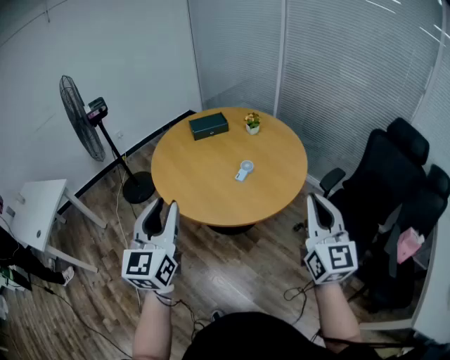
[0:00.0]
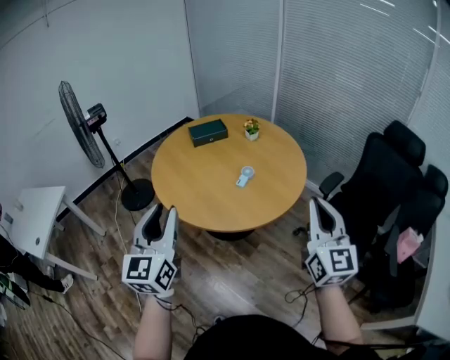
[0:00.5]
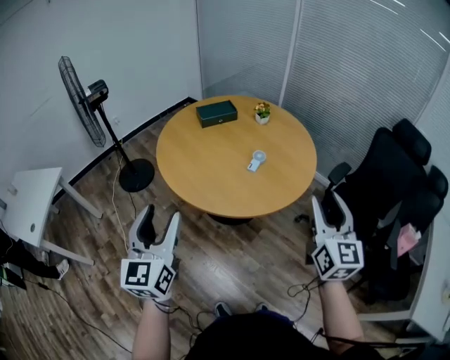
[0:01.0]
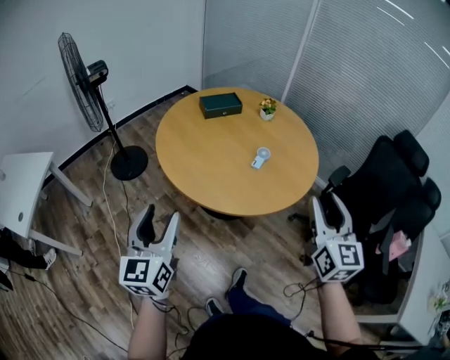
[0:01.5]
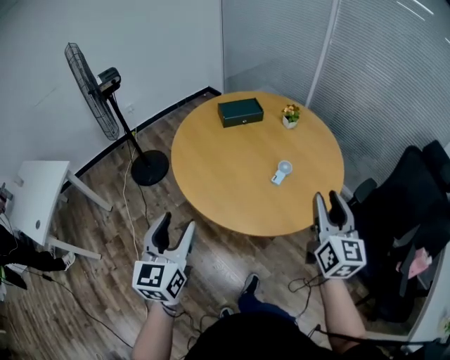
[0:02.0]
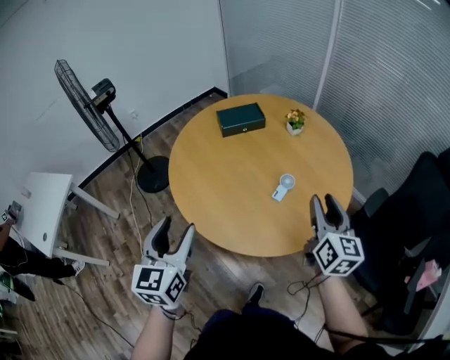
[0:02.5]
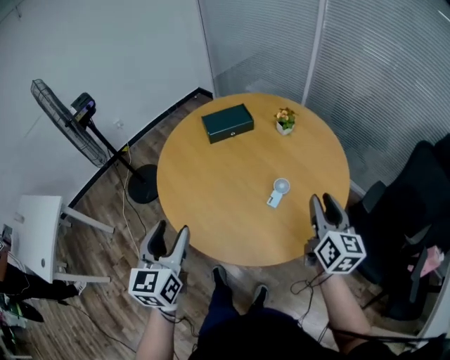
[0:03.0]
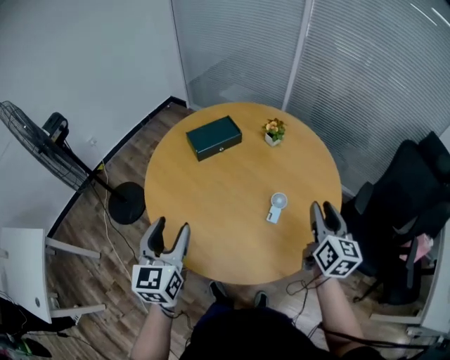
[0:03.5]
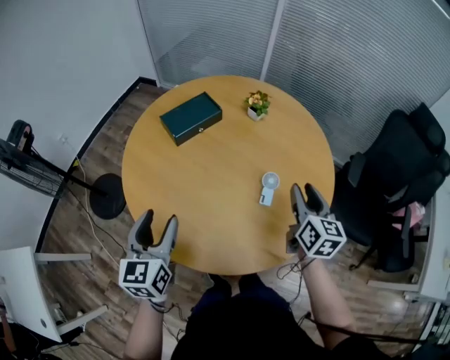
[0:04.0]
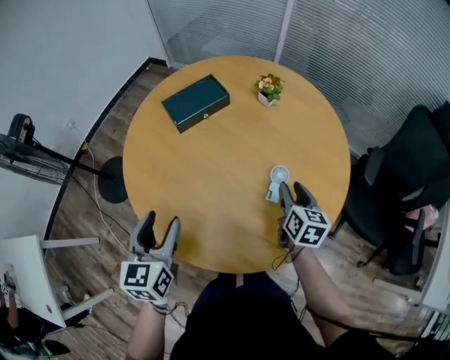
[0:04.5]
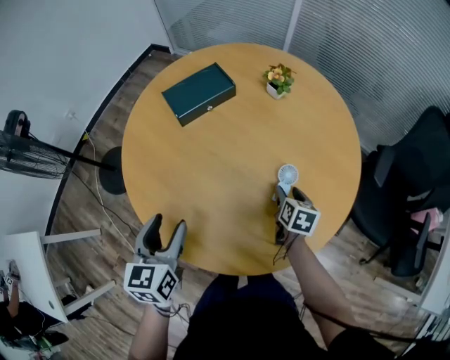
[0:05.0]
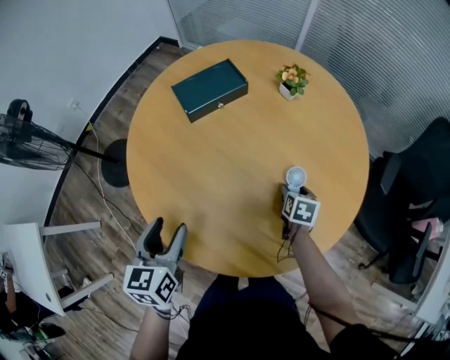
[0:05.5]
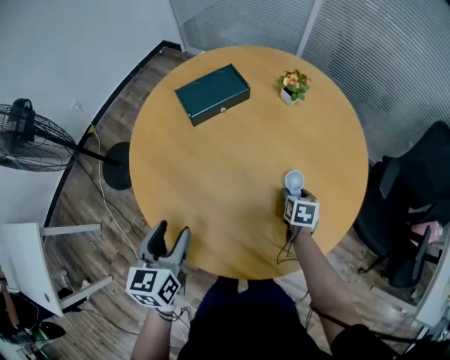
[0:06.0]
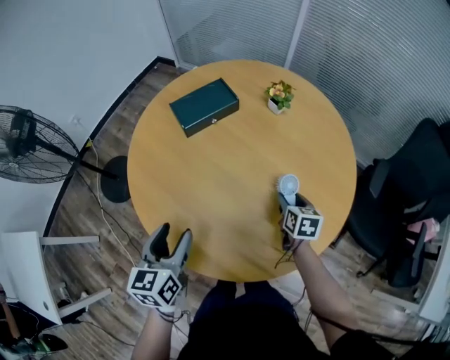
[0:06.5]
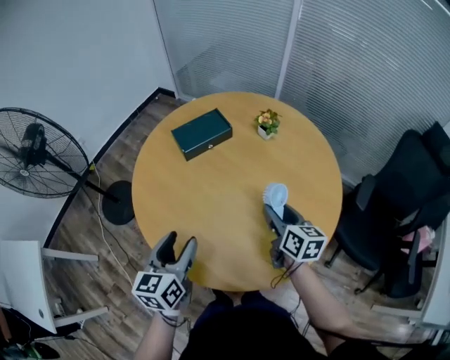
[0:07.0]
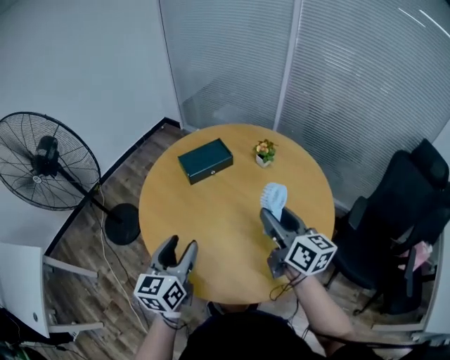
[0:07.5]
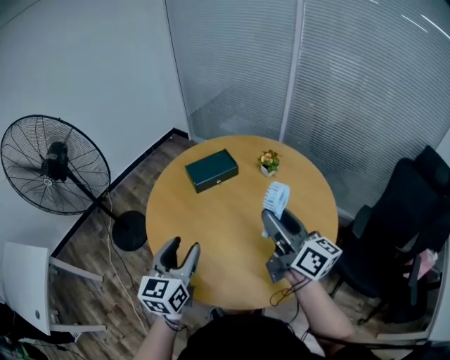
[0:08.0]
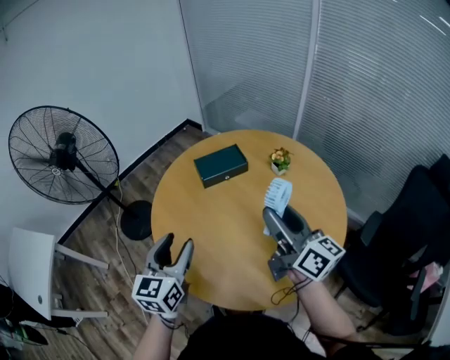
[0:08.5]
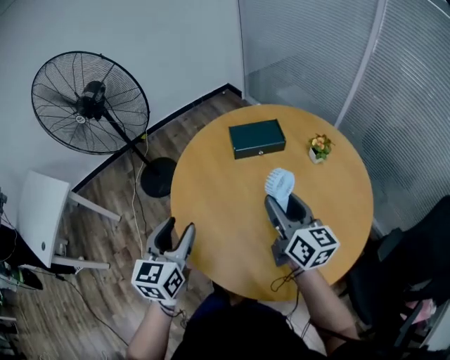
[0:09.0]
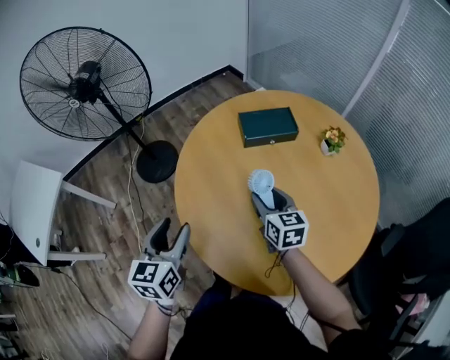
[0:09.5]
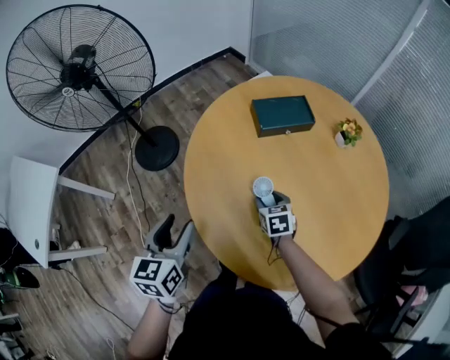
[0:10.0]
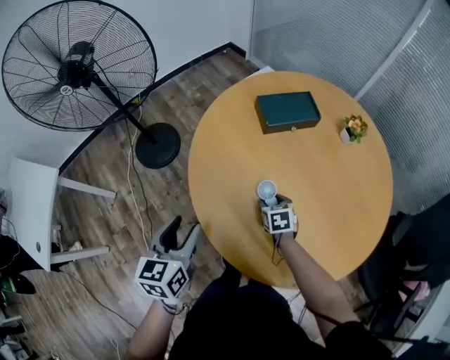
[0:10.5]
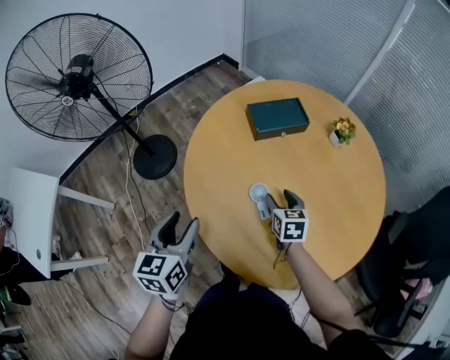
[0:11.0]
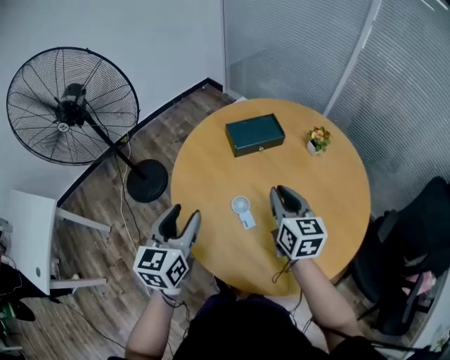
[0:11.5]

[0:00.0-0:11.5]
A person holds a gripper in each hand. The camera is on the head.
0:00.0 to 0:02.0: The right gripper travels forward, to the left and downward by roughly 25 cm, and opens. Meanwhile the left gripper moves to the left, downward and forward, approximately 20 cm, and opens up.
0:02.0 to 0:04.0: The right gripper is displaced forward and downward by some 30 cm, and swivels approximately 30 degrees; the left gripper travels forward by roughly 35 cm.
0:04.0 to 0:06.0: The left gripper is displaced downward by roughly 10 cm, while the right gripper travels downward by about 30 cm, and angles its fingers downward, by about 40 degrees.
0:06.0 to 0:07.5: The left gripper travels upward and to the right by some 15 cm, while the right gripper moves upward, some 35 cm, and angles its fingers upward, by approximately 50 degrees.
0:07.5 to 0:09.5: The left gripper is displaced to the left by roughly 15 cm, and changes its angle by about 20 degrees. The right gripper goes some 25 cm to the left, downward and forward, and changes its angle by about 30 degrees.
0:09.5 to 0:11.5: The left gripper heads forward, covering approximately 5 cm, while the right gripper reaches about 20 cm downward, then returns, and closes up.

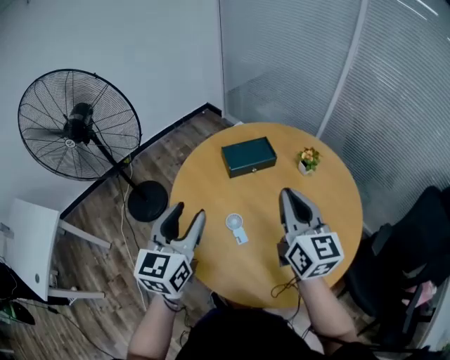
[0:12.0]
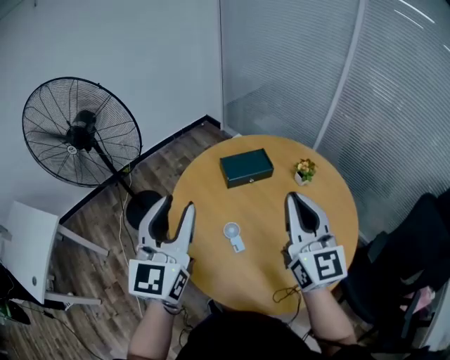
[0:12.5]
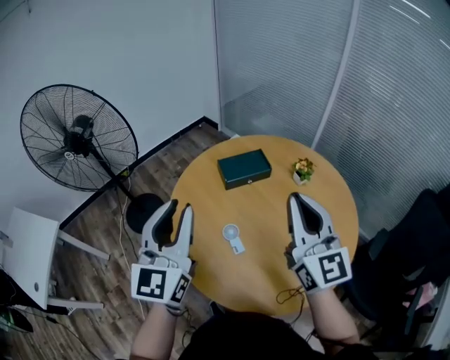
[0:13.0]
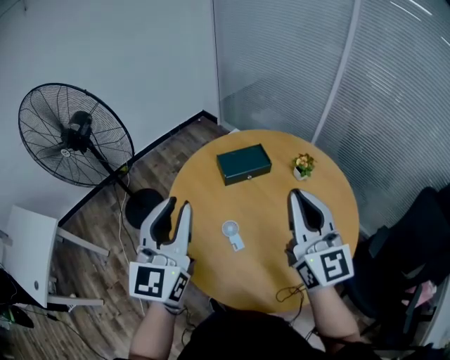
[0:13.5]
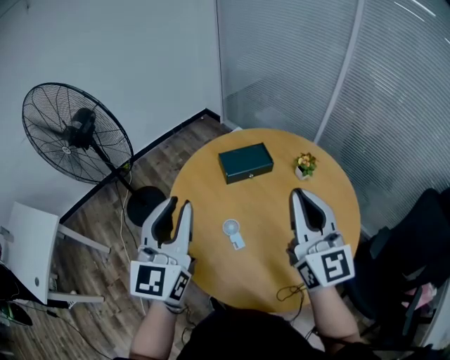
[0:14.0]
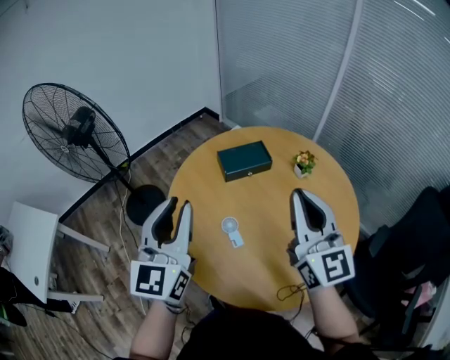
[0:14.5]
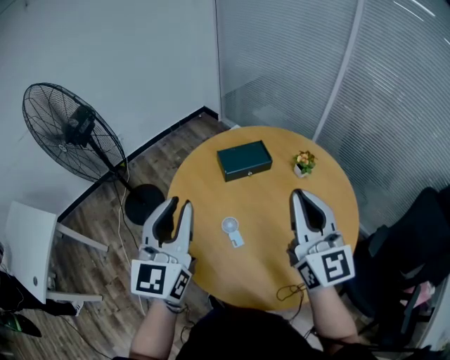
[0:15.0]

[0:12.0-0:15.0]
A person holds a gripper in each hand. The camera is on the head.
0:12.0 to 0:13.5: The two grippers go some 10 cm upward. The left gripper closes up.
0:13.5 to 0:15.0: The grippers stay close to where they were, moving slightly.

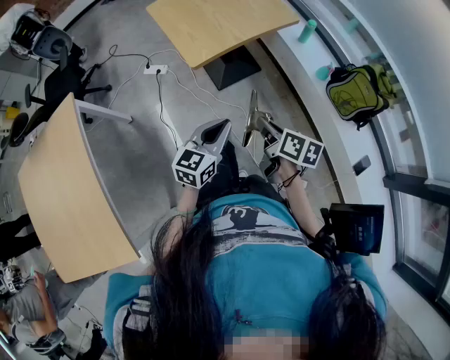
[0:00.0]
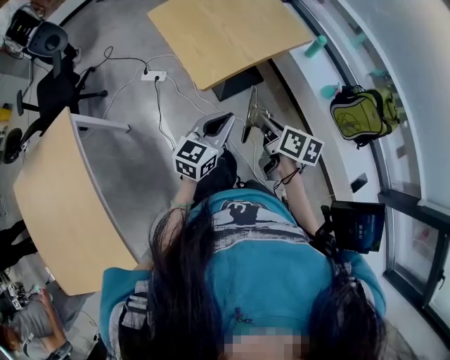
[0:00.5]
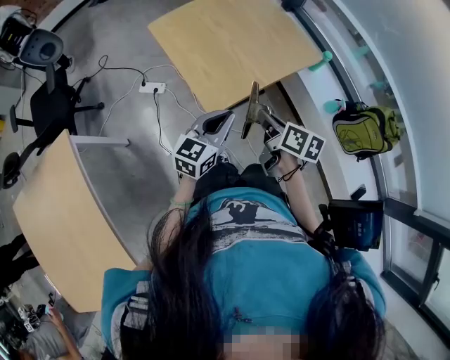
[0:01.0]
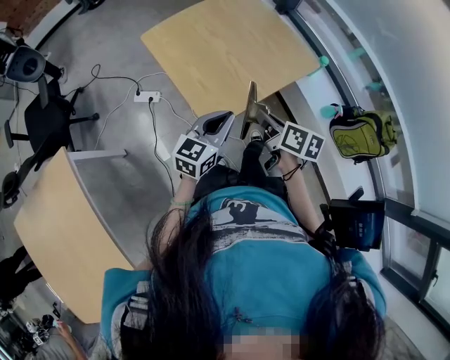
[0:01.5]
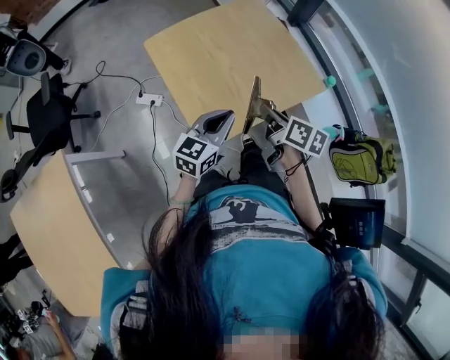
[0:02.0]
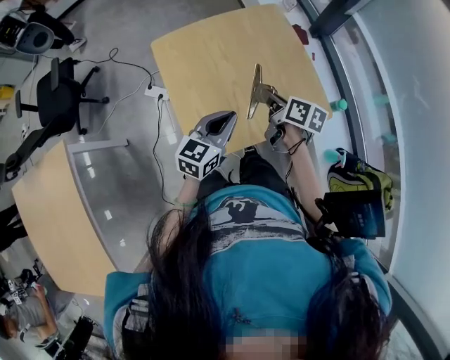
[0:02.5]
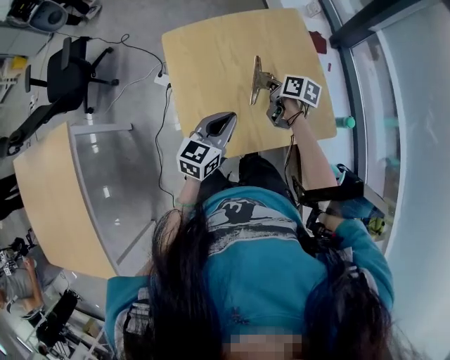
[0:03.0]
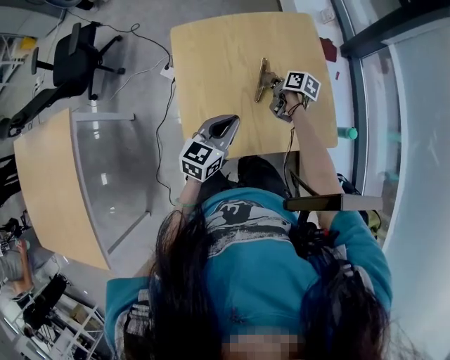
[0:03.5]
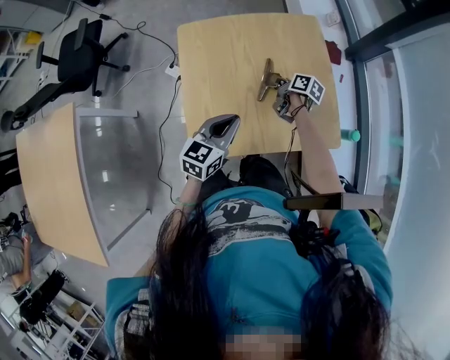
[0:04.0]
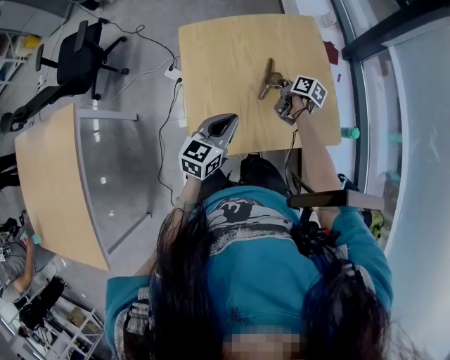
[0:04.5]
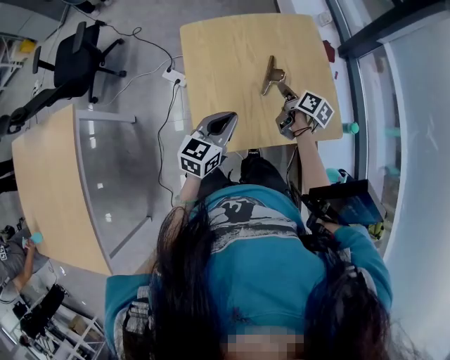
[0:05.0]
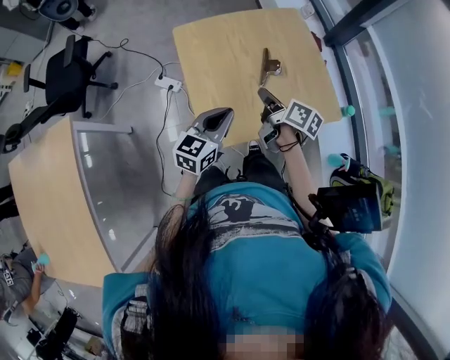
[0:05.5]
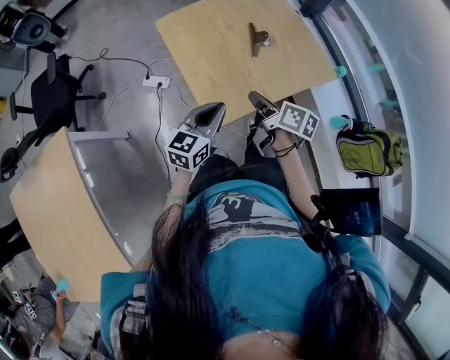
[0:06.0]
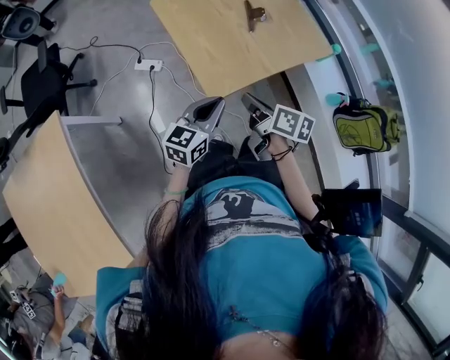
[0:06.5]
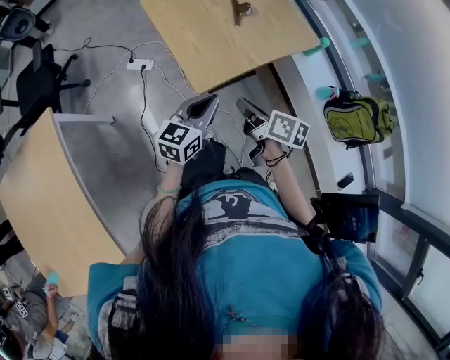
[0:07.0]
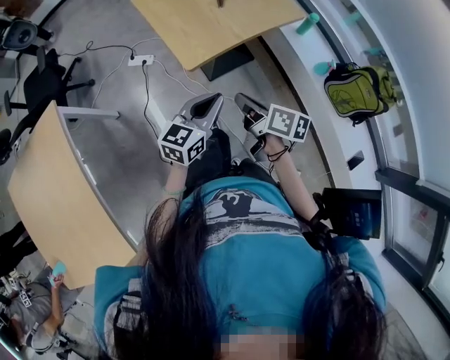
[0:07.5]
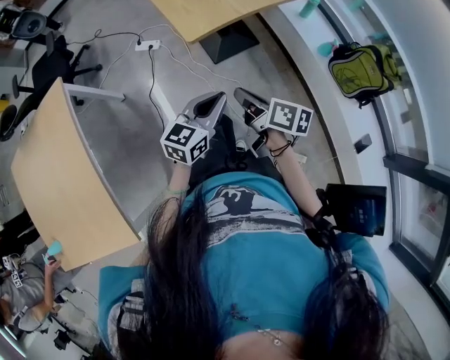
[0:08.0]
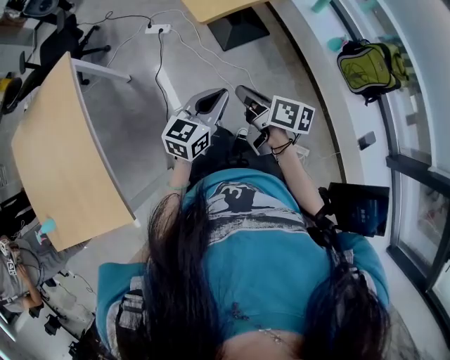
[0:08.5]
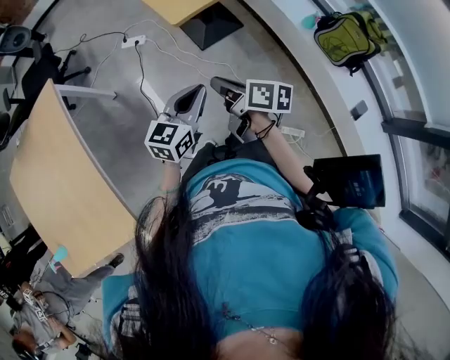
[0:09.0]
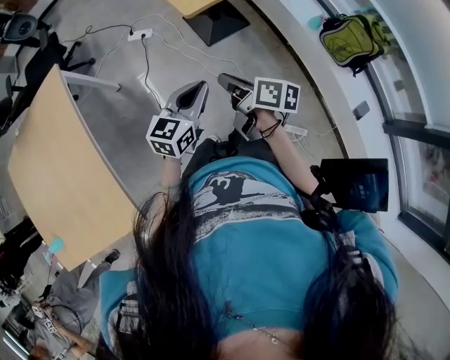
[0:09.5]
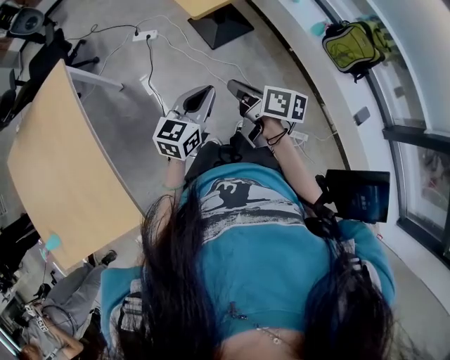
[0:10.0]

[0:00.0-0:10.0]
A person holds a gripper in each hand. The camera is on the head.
0:00.0 to 0:02.0: Both grippers are carried forward, approximately 40 cm.
0:02.0 to 0:04.0: The right gripper is displaced forward and downward by approximately 35 cm, and rotates about 20 degrees. The left gripper shifts approximately 10 cm forward, and rotates some 20 degrees.
0:04.0 to 0:06.0: The right gripper shifts approximately 35 cm backward, upward and to the left, turns by roughly 20 degrees, and opens, then closes again. The left gripper heads backward and to the left, covering some 20 cm.
0:06.0 to 0:08.0: Both grippers travel together backward, some 35 cm.
0:08.0 to 0:10.0: Both grippers move backward and to the left, some 15 cm.

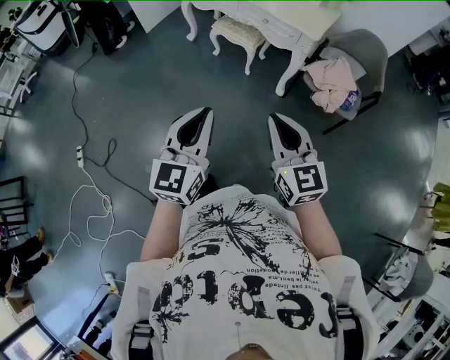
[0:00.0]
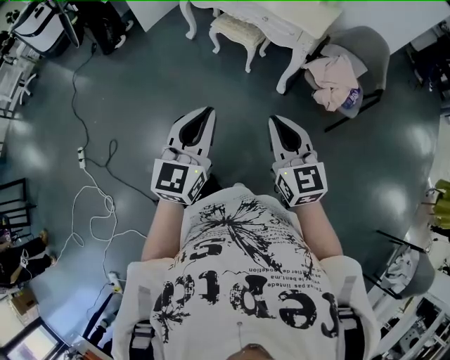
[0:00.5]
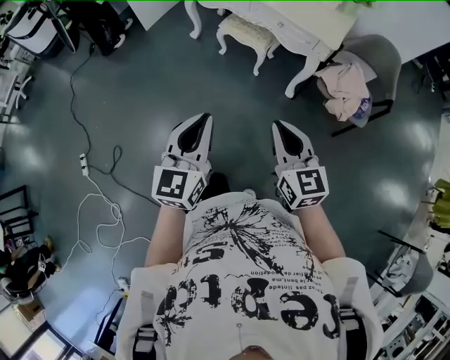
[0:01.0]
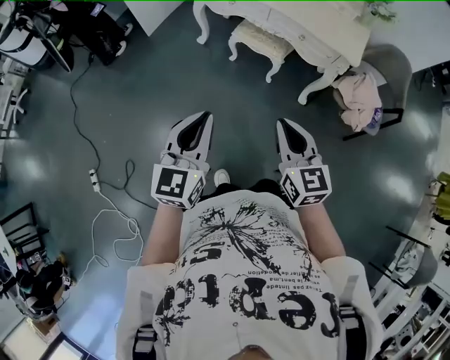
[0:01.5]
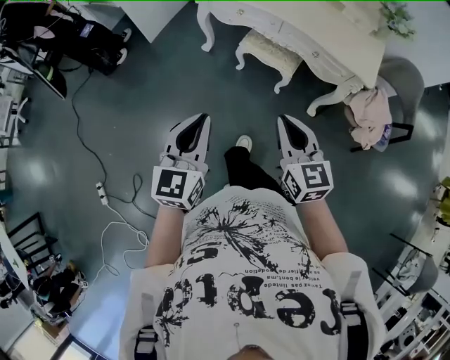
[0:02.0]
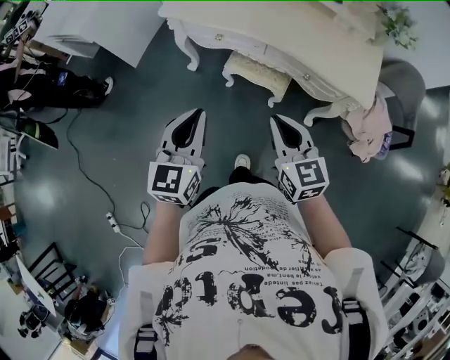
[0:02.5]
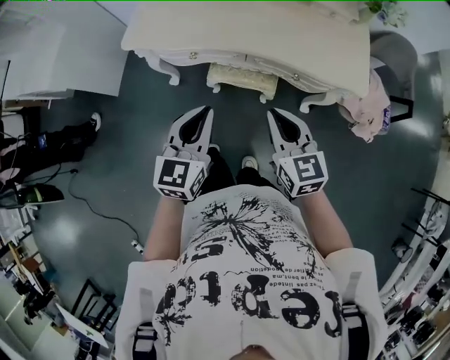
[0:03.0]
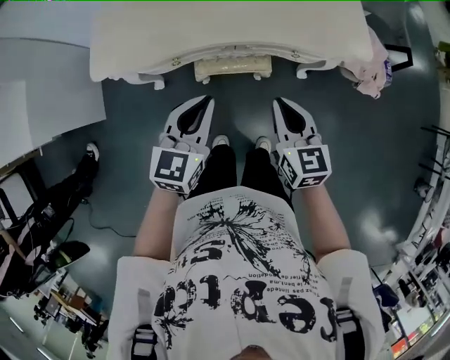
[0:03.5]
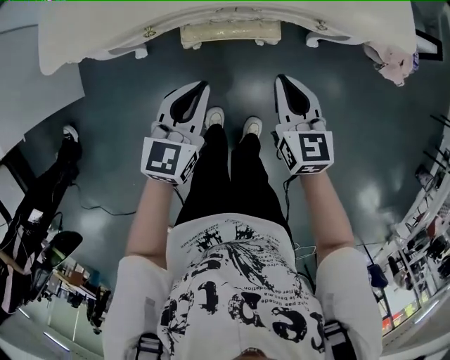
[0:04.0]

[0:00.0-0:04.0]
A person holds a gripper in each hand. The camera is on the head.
0:00.0 to 0:02.0: Both grippers are carried forward and to the left, roughly 40 cm.
0:02.0 to 0:04.0: The right gripper changes place by roughly 40 cm, and changes its angle by about 40 degrees. Meanwhile the left gripper ends up about 50 cm from where it was, and changes its angle by about 40 degrees.
